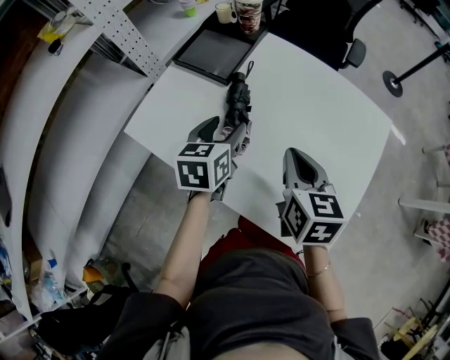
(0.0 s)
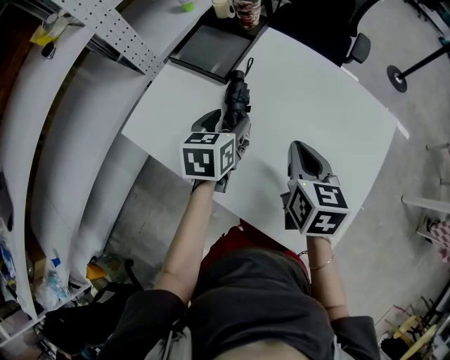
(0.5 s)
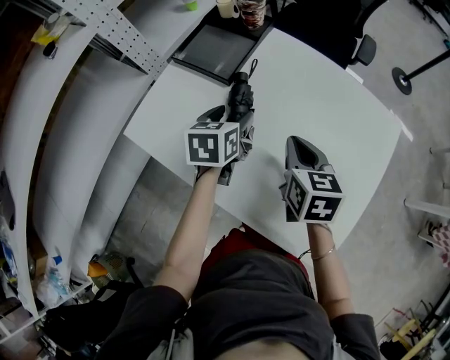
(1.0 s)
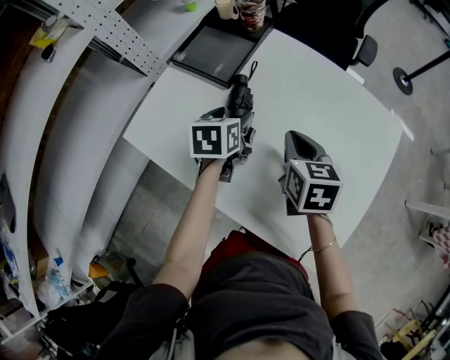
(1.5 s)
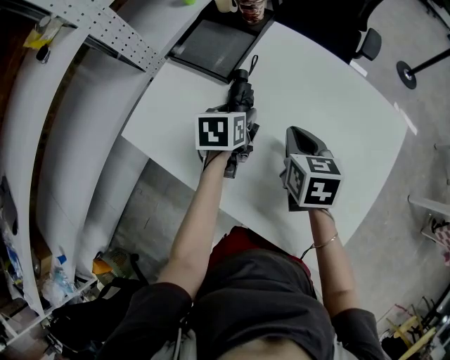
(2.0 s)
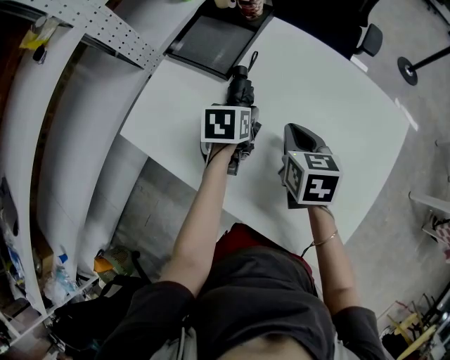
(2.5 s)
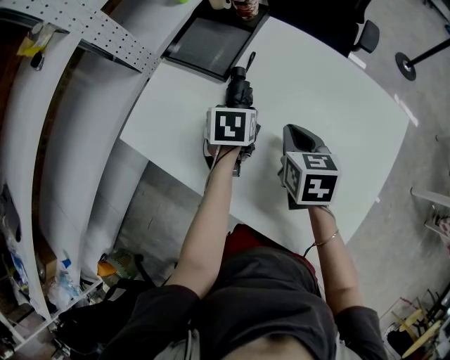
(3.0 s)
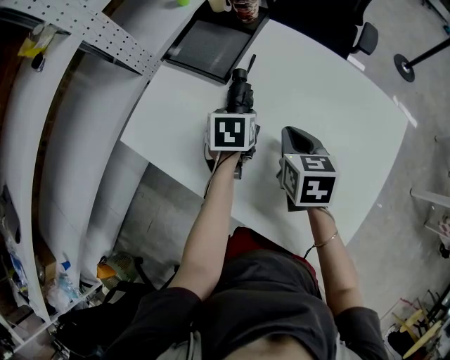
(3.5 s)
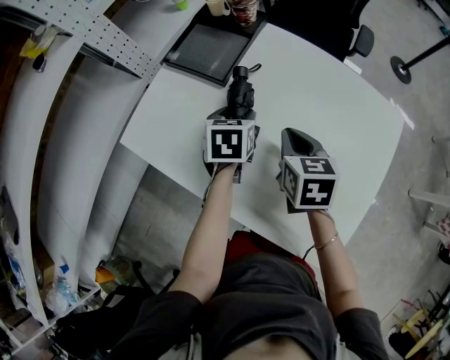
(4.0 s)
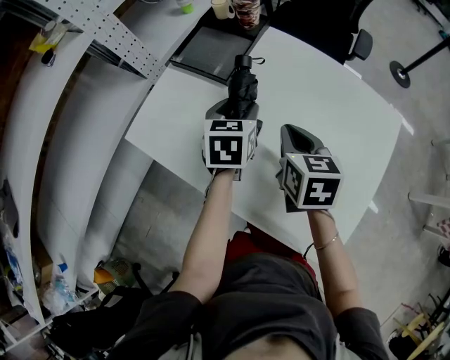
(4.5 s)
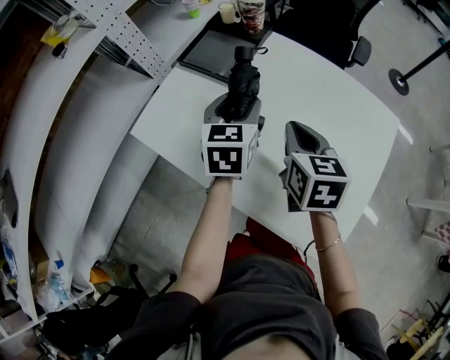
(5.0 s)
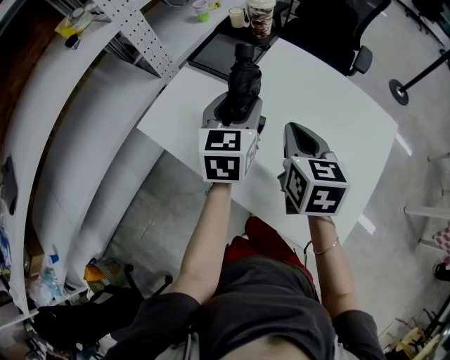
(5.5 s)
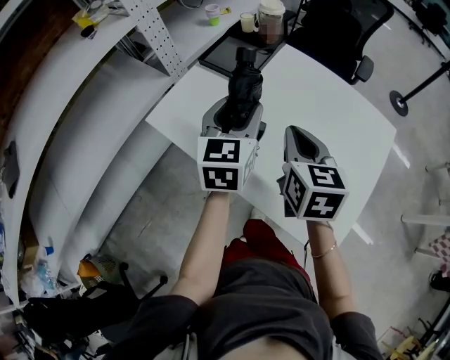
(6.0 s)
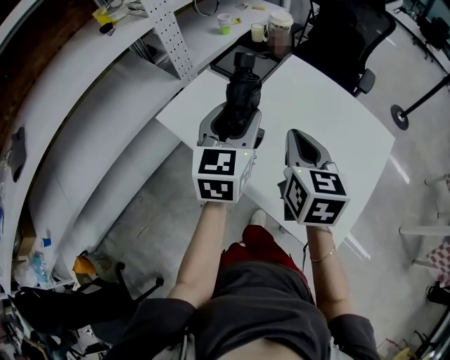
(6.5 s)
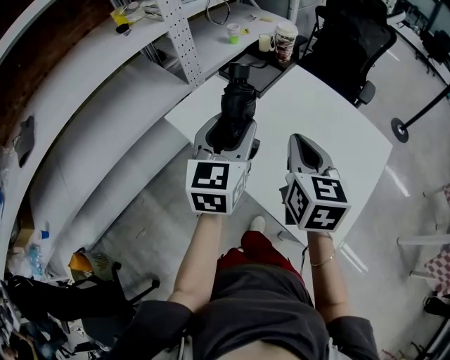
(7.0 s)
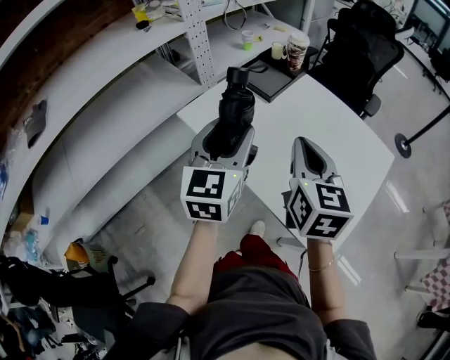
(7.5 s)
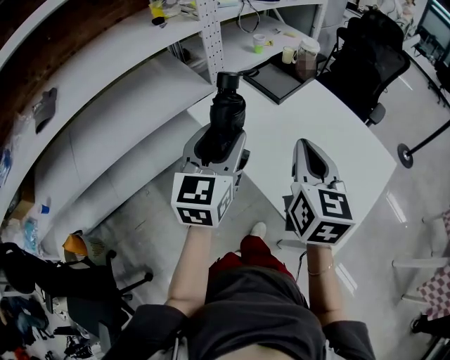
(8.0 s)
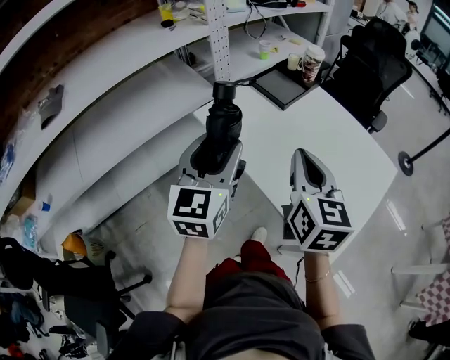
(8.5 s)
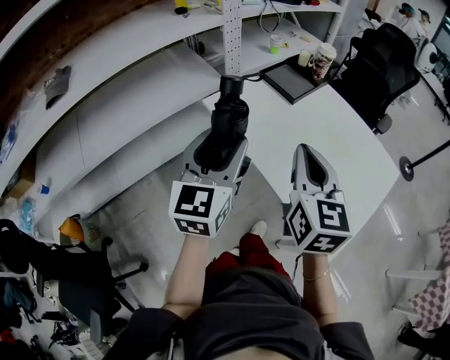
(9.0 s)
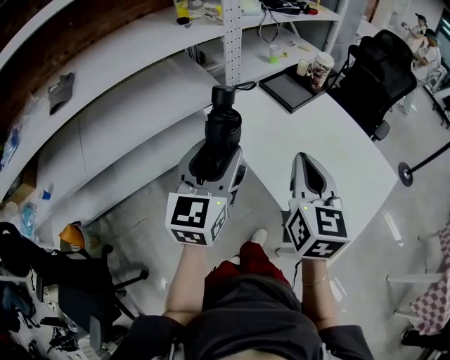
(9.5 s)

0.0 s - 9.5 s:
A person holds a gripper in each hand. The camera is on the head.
0.0 s - 2.0 s: The left gripper heads downward and forward, covering roughly 10 cm; the right gripper heads forward and downward, covering about 10 cm.
2.0 s - 4.0 s: There are only small adjustments of the grippers.
4.0 s - 5.5 s: The left gripper heads upward, covering about 15 cm, and changes its angle by some 30 degrees, while the right gripper goes approximately 10 cm upward.
5.5 s - 7.5 s: The grippers both shift backward, upward and to the left by some 20 cm.
7.5 s - 9.5 s: The grippers both shift to the left and backward by approximately 10 cm.

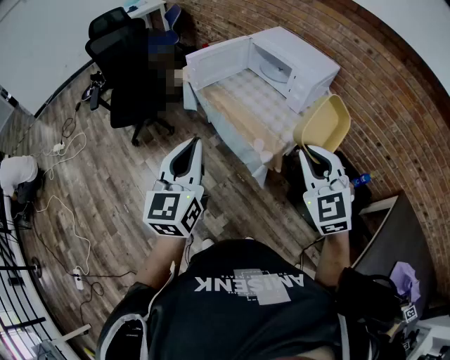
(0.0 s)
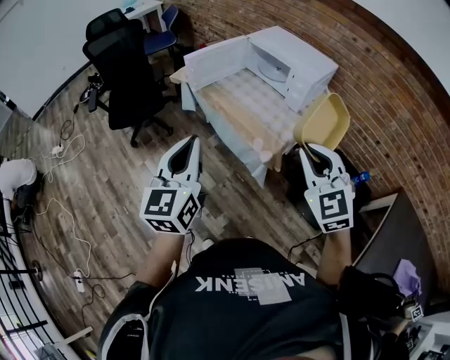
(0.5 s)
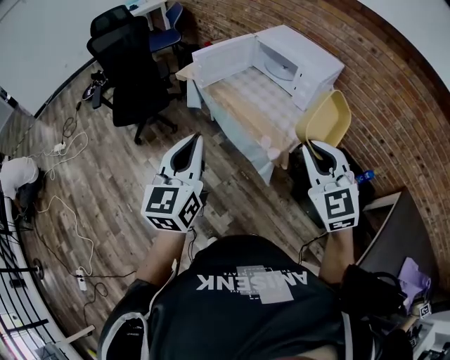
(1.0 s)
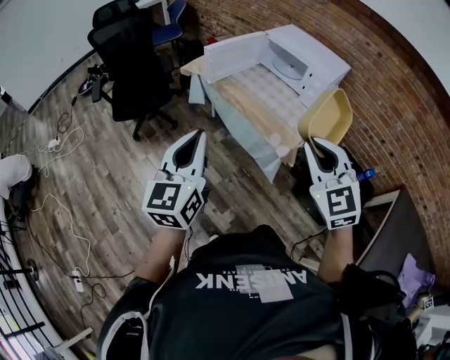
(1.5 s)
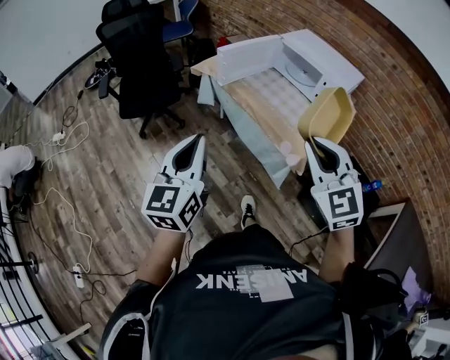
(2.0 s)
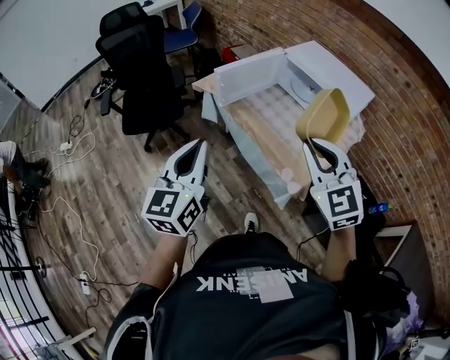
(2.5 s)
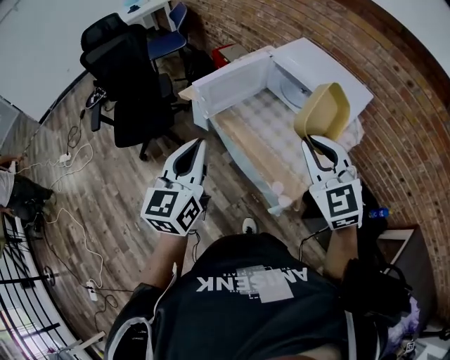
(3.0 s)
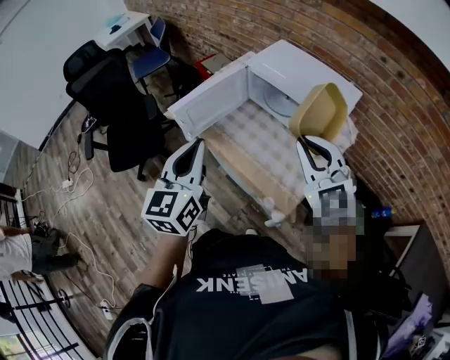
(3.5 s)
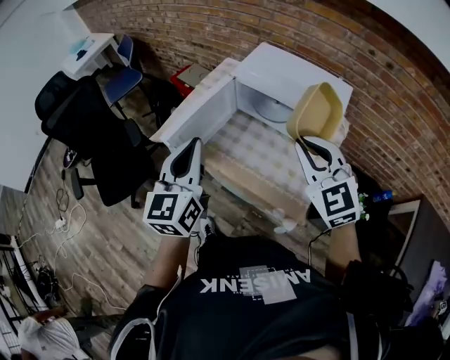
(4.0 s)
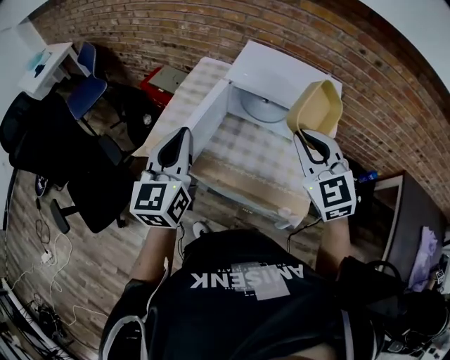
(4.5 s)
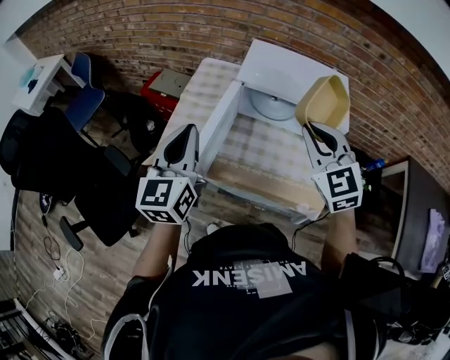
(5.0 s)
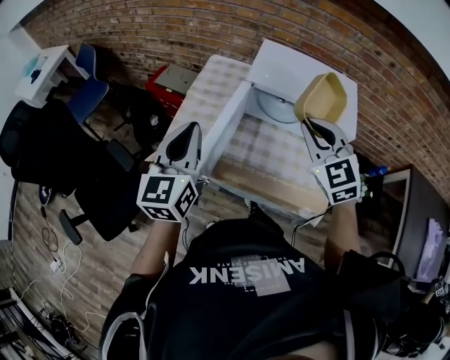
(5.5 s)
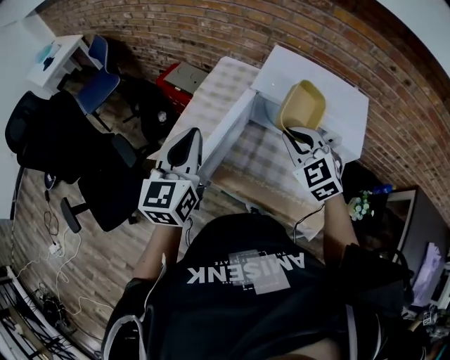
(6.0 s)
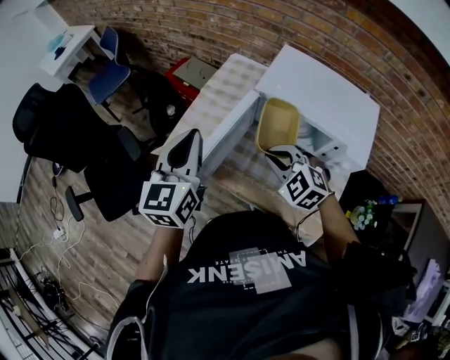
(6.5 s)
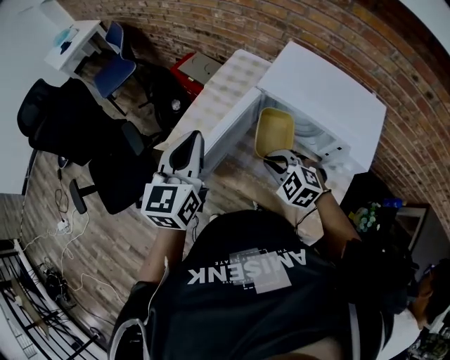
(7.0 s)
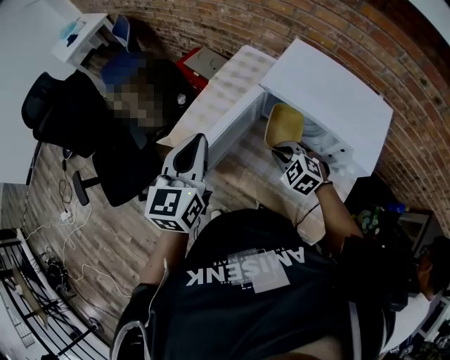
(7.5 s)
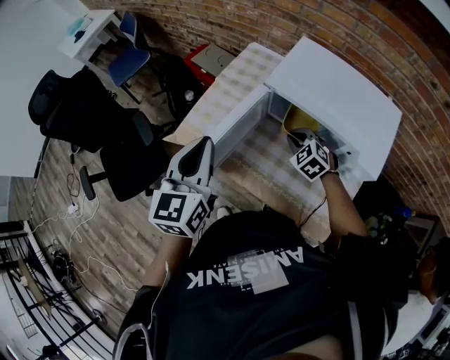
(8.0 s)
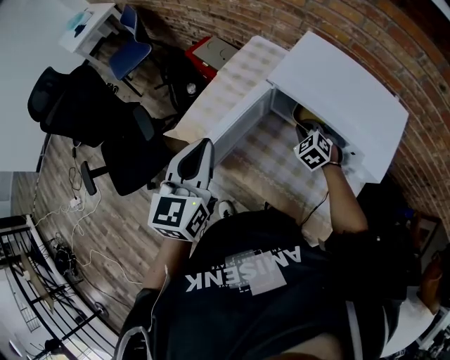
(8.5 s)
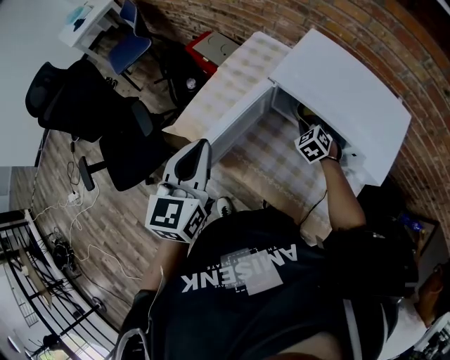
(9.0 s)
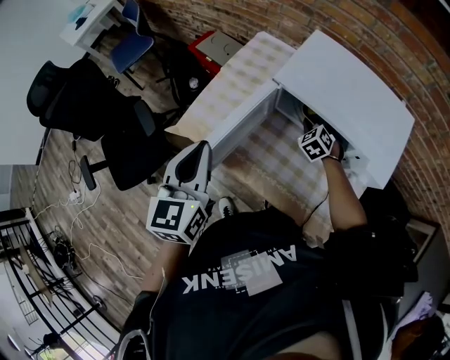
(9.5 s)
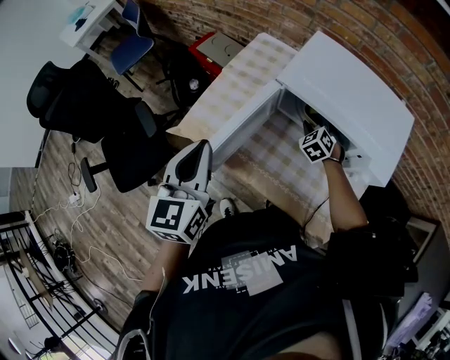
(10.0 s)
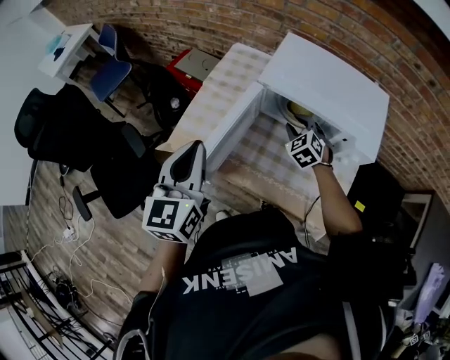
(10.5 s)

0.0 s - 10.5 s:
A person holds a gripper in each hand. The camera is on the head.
0.0 s - 2.0 s: Both grippers move to the left, approximately 15 cm.
2.0 s - 4.0 s: Both grippers move forward, roughly 40 cm.
4.0 s - 6.5 s: The left gripper shifts some 20 cm forward and to the left; the right gripper goes about 25 cm downward, to the left and forward, and rotates some 30 degrees.
6.5 s - 8.5 s: The right gripper is displaced downward, to the right and forward by roughly 25 cm.
8.5 s - 10.5 s: The right gripper opens its fingers.

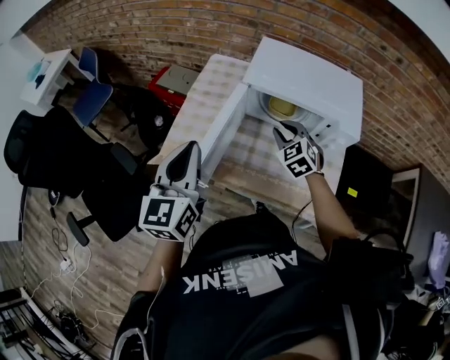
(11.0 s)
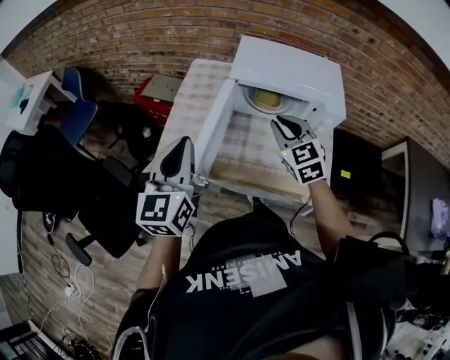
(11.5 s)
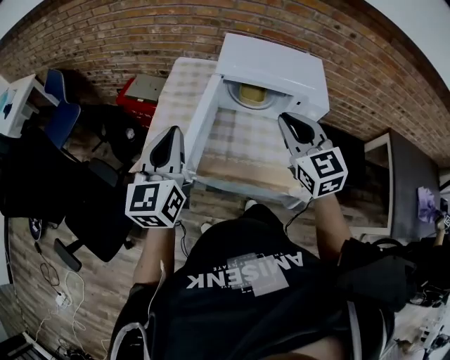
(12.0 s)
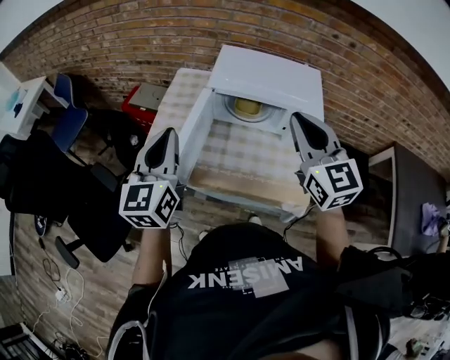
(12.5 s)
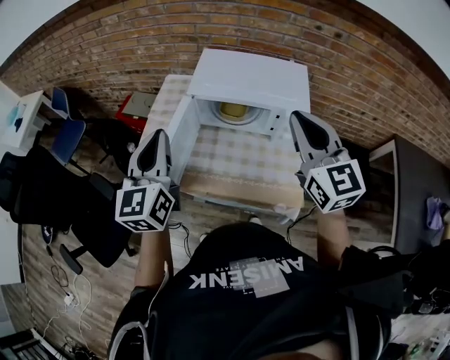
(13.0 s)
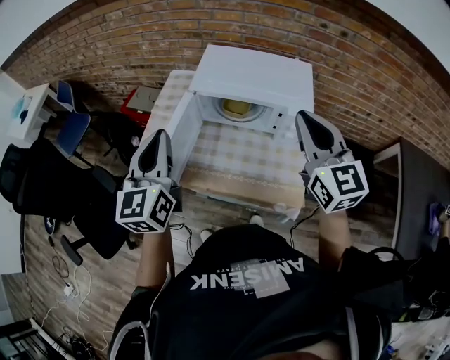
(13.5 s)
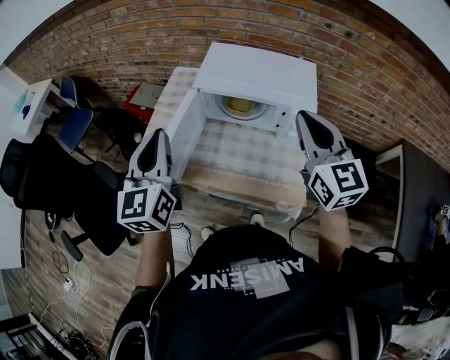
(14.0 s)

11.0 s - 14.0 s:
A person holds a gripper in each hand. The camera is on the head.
11.0 s - 12.5 s: The right gripper shifts about 30 cm upward and backward, and points its fingers some 30 degrees further upward.
12.5 s - 14.0 s: The right gripper shifts approximately 10 cm to the right, while the left gripper moves to the right, some 5 cm.

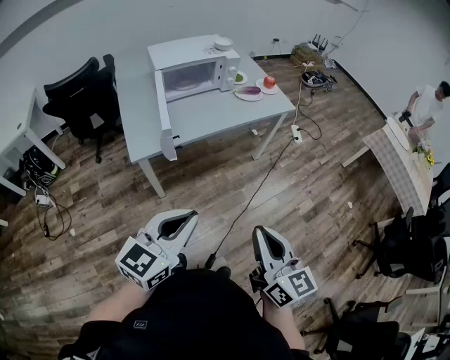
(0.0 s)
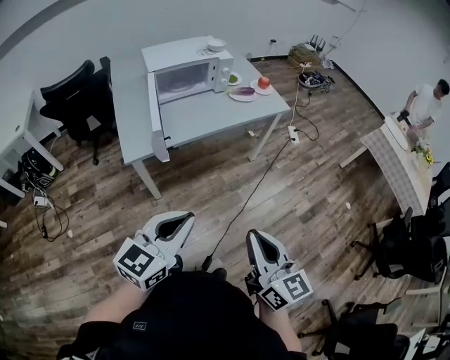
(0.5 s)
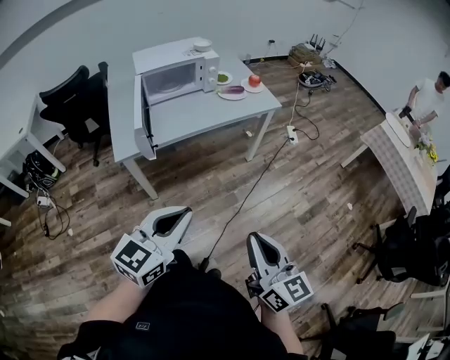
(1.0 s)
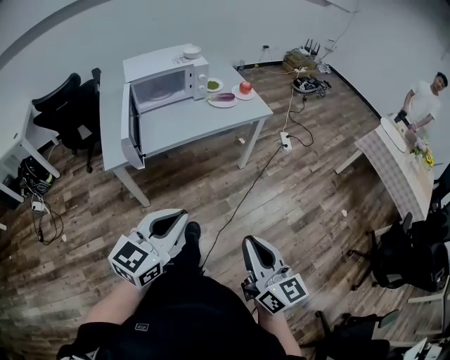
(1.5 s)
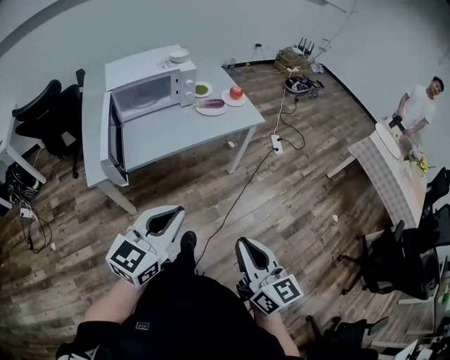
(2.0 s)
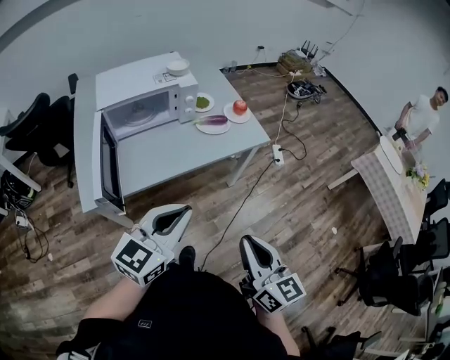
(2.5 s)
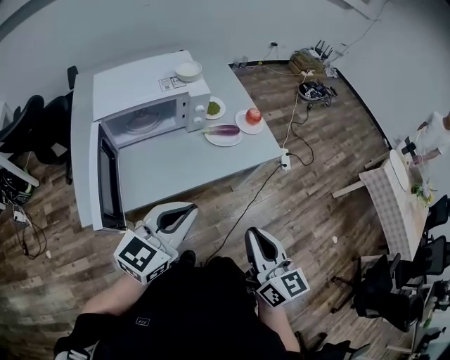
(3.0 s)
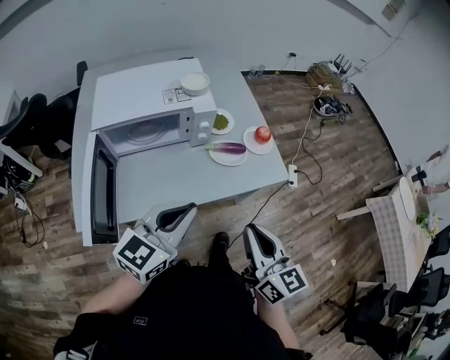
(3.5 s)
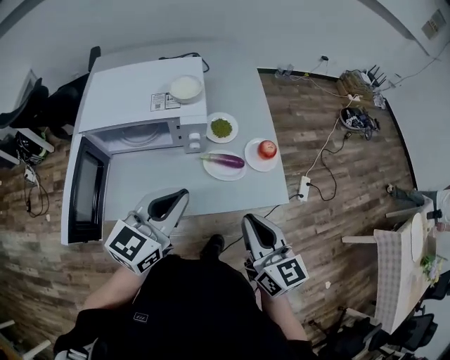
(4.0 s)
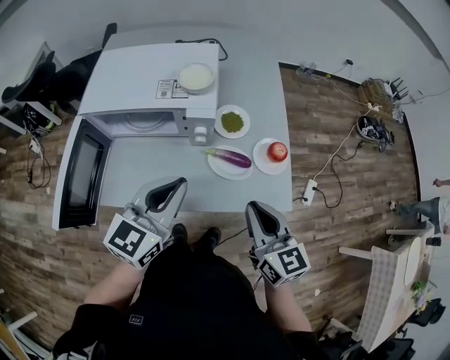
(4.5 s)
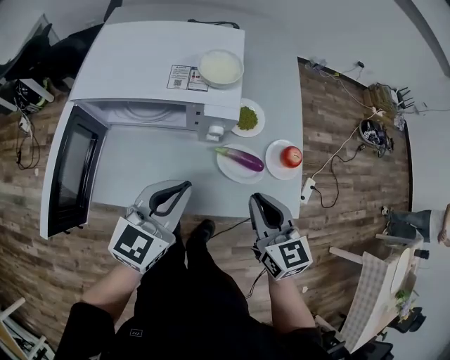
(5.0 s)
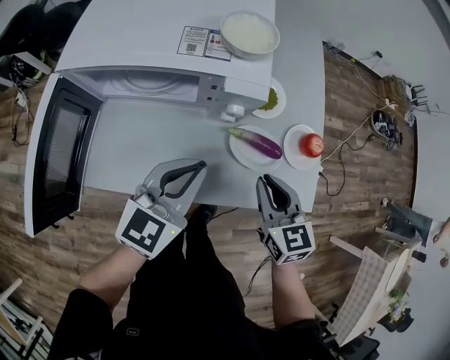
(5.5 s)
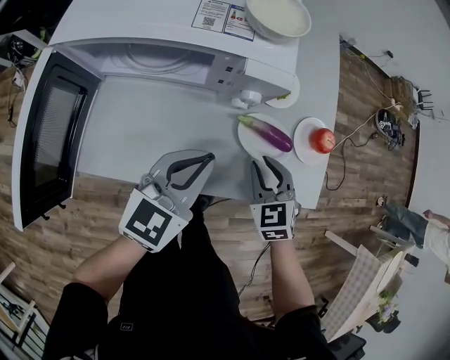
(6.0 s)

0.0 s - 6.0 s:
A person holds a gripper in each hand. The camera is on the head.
0.0 s - 2.0 s: The grippers both shift to the right and forward by approximately 20 cm.
2.0 s - 4.0 s: Both grippers are carried forward, roughly 50 cm. The right gripper rotates approximately 20 degrees.
4.0 s - 6.0 s: The left gripper heads downward and forward, covering about 20 cm. Meanwhile the right gripper travels downward and forward by some 30 cm, and tips its fingers downward by roughly 30 degrees.
